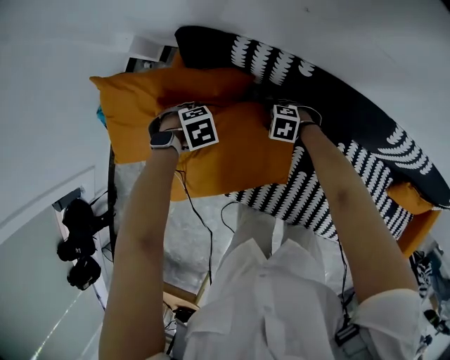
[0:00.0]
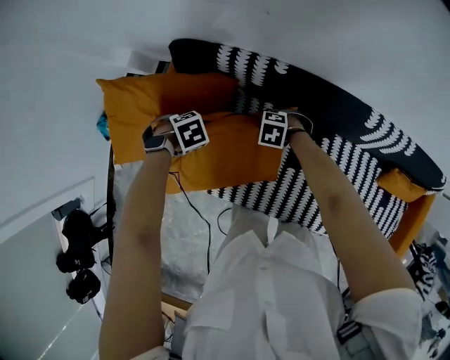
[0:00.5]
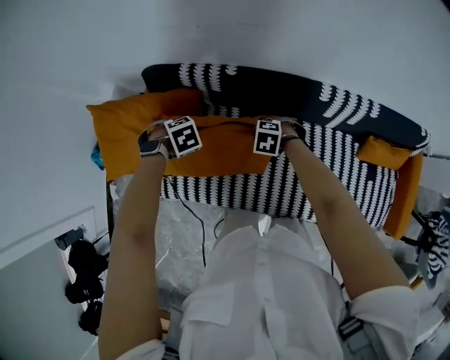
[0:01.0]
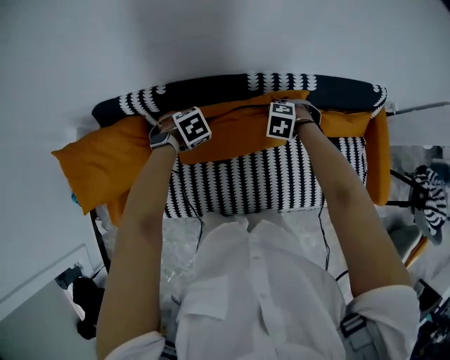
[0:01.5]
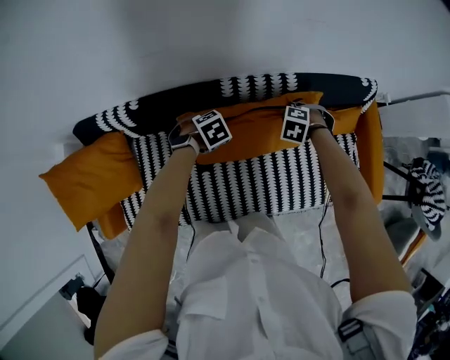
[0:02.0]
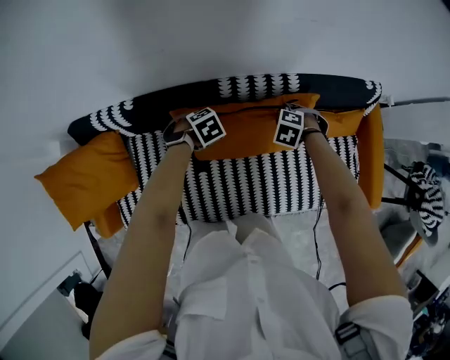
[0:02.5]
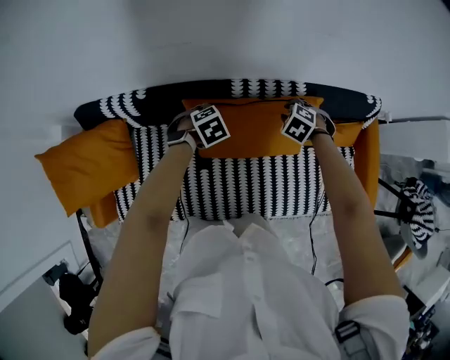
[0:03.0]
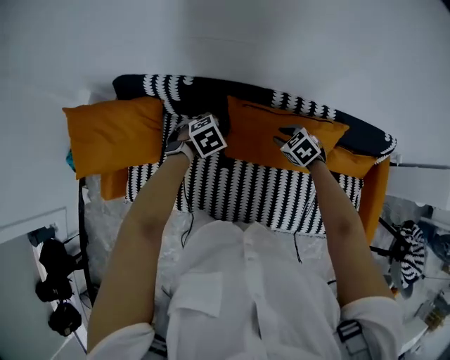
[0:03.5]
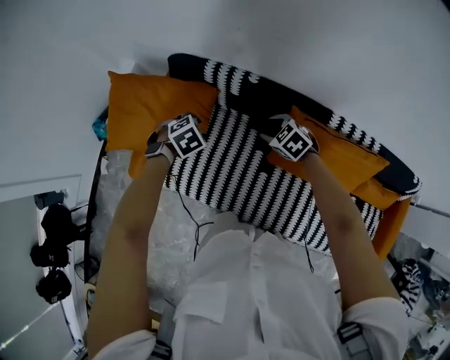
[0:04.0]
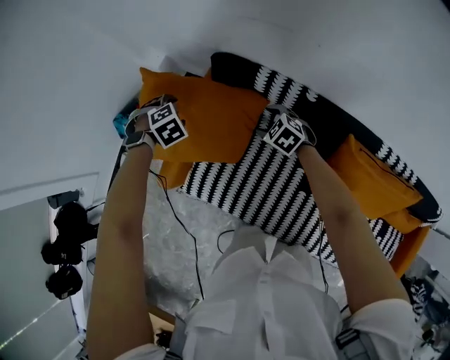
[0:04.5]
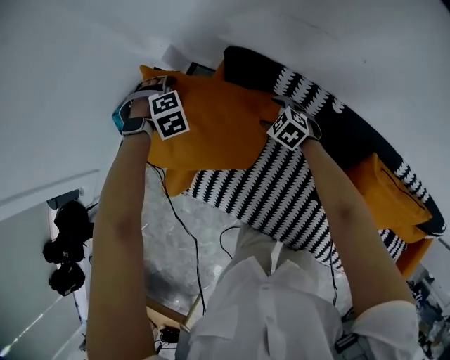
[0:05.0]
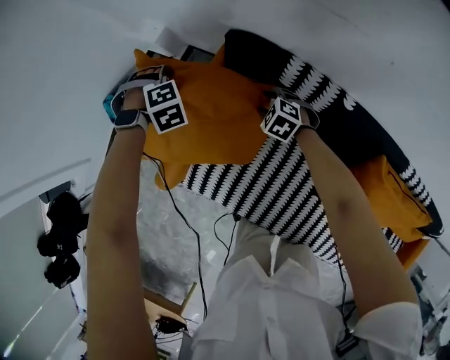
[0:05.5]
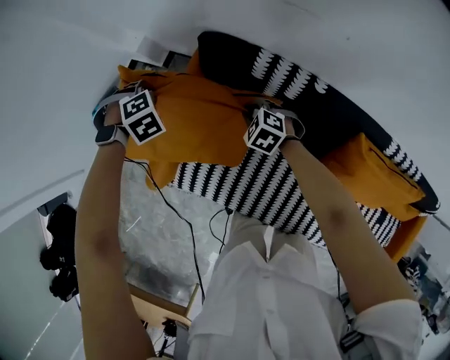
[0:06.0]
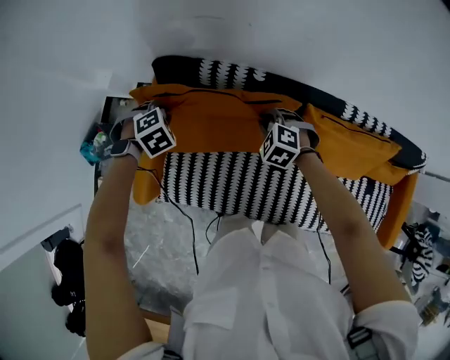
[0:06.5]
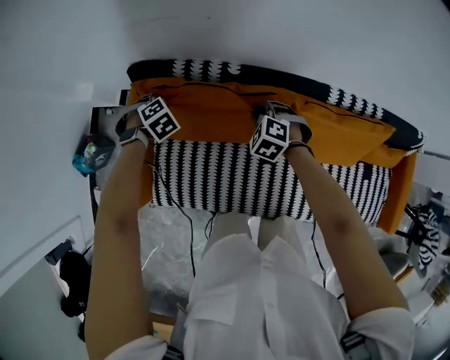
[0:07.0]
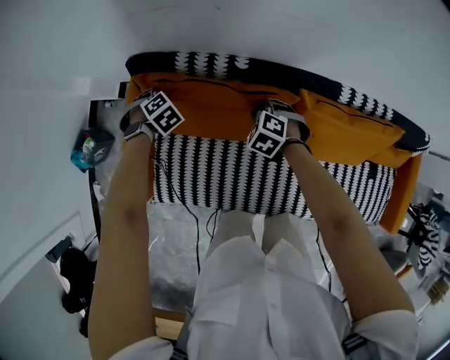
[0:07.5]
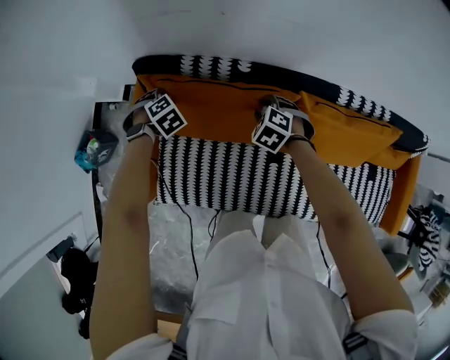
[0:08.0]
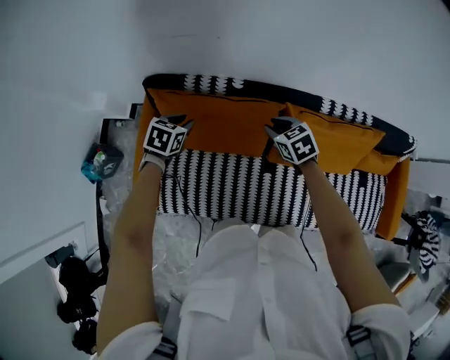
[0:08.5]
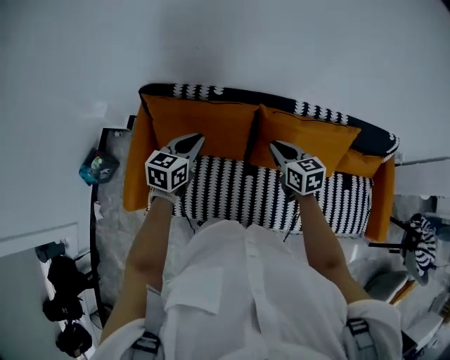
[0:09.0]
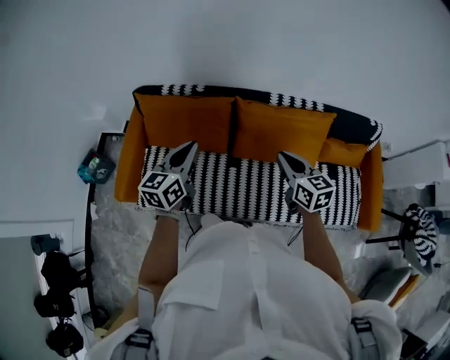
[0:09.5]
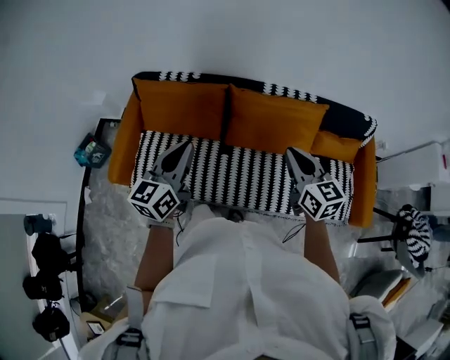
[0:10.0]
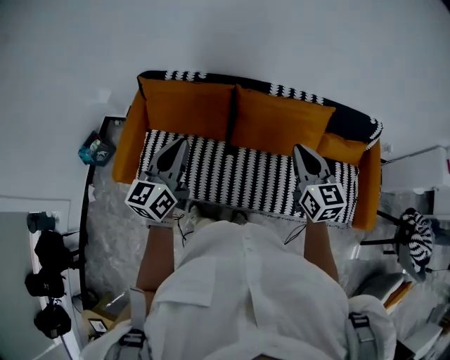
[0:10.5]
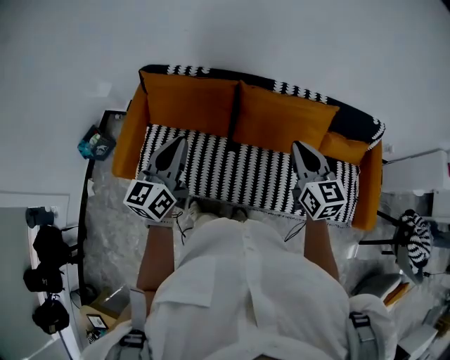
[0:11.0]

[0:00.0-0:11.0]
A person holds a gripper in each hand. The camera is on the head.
0:00.0 to 0:02.0: The pair of grippers is taken roughly 60 cm. The right gripper changes its angle by approximately 40 degrees, and closes. The left gripper turns by some 20 degrees, and closes its fingers.
0:02.0 to 0:03.5: The left gripper shifts by approximately 15 cm, swivels about 20 degrees, and opens. The right gripper ends up about 20 cm from where it was, and turns by some 30 degrees.
0:03.5 to 0:05.5: The pair of grippers is taken about 60 cm. The left gripper rotates some 30 degrees. Meanwhile the right gripper rotates about 40 degrees.
0:05.5 to 0:07.5: The left gripper moves about 25 cm, and closes. Meanwhile the right gripper shifts by some 30 cm, turns by some 30 degrees, and closes up.
0:07.5 to 0:09.0: The left gripper changes place by about 35 cm, and angles its fingers upward, by roughly 50 degrees. The right gripper goes some 20 cm upward, and twists some 50 degrees clockwise, seen from behind.
0:09.0 to 0:11.0: The left gripper heads backward and upward, covering approximately 25 cm, and turns by some 30 degrees; the right gripper heads backward, upward and to the right, covering about 30 cm, and changes its angle by some 20 degrees.

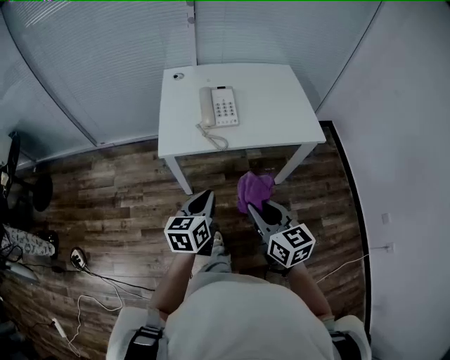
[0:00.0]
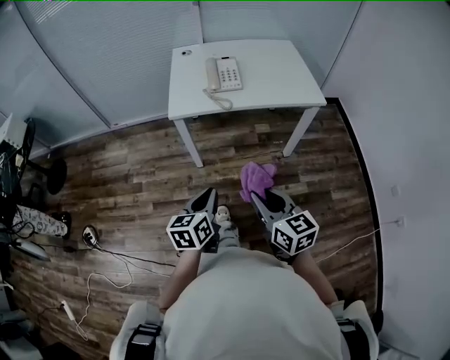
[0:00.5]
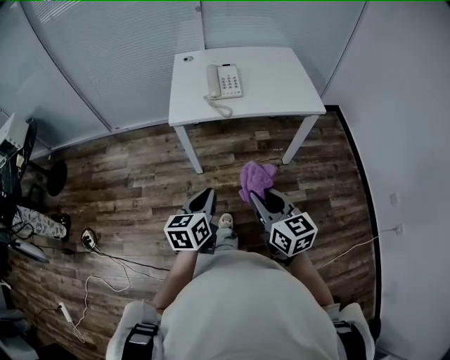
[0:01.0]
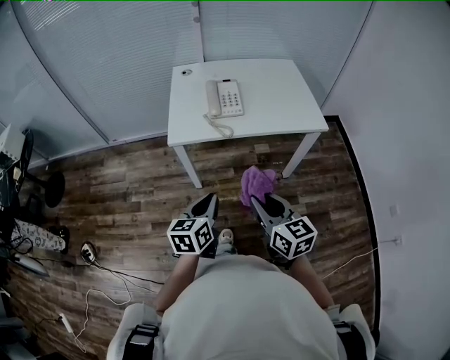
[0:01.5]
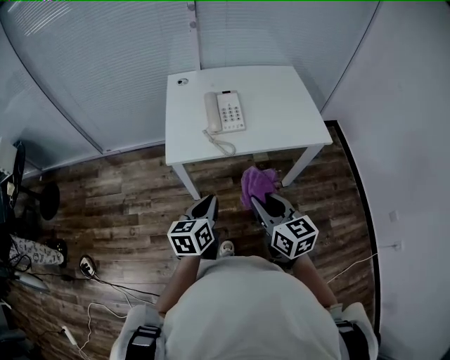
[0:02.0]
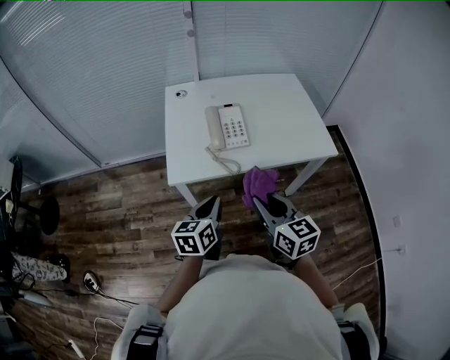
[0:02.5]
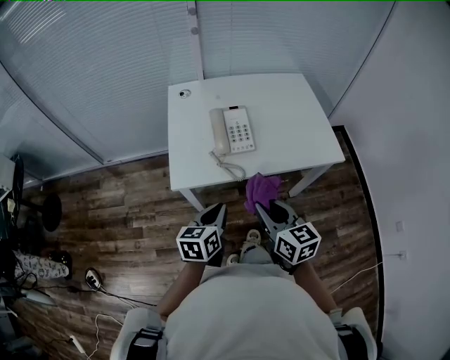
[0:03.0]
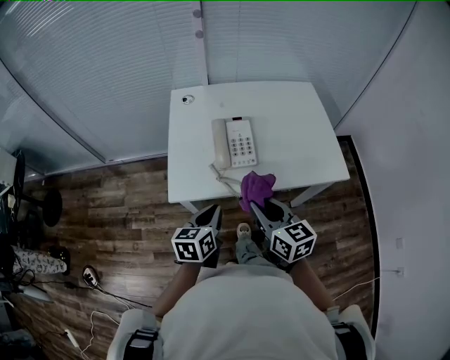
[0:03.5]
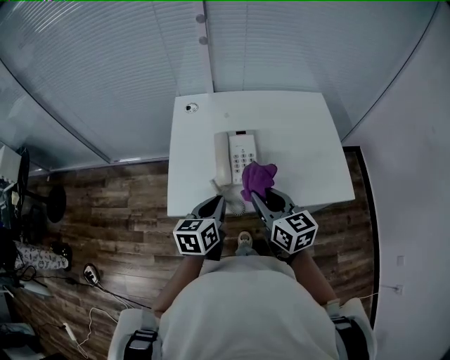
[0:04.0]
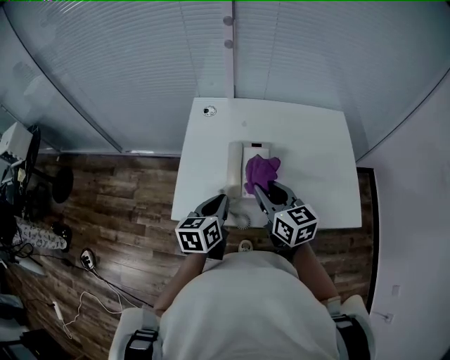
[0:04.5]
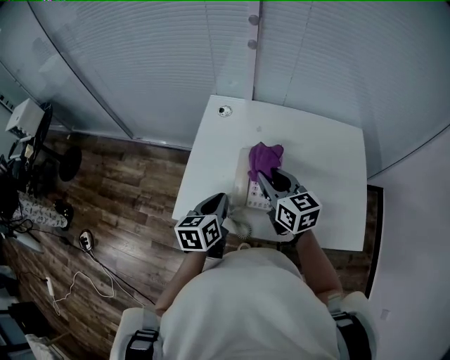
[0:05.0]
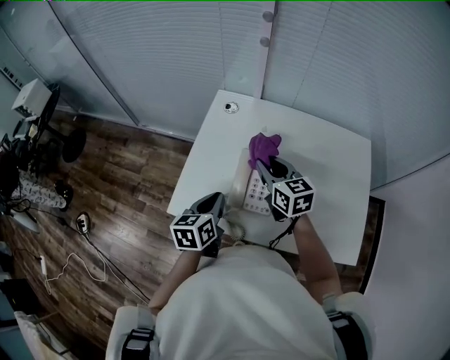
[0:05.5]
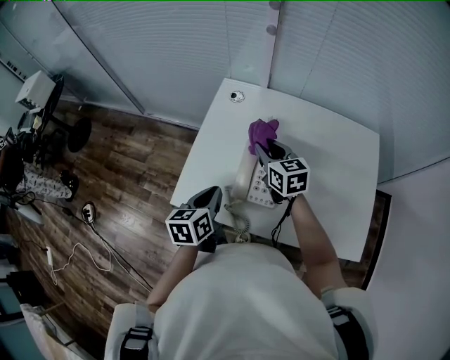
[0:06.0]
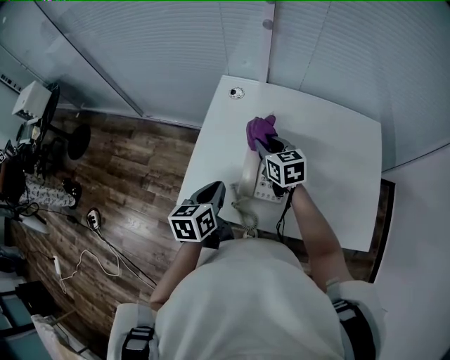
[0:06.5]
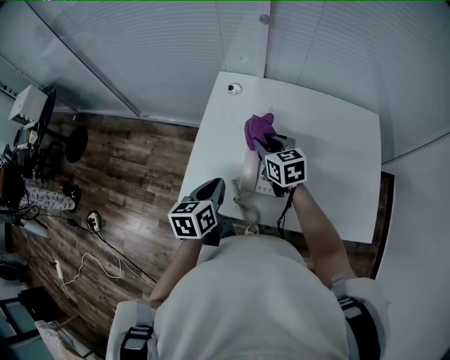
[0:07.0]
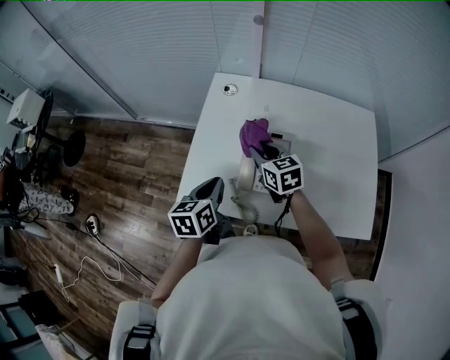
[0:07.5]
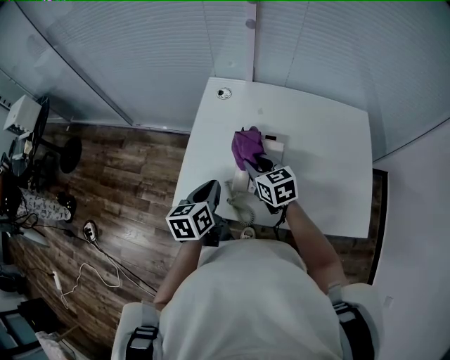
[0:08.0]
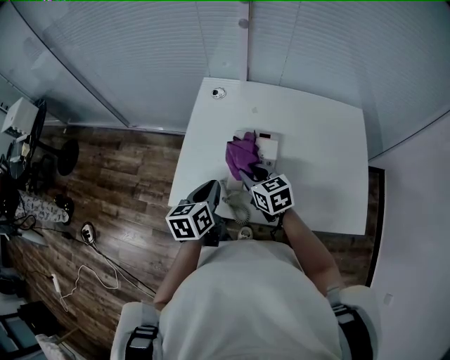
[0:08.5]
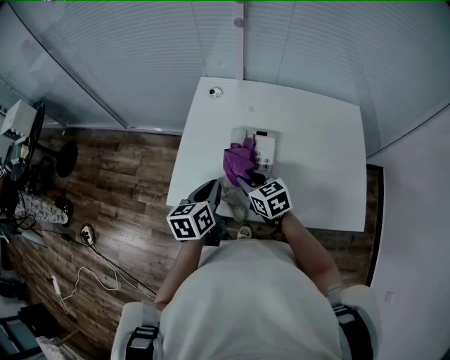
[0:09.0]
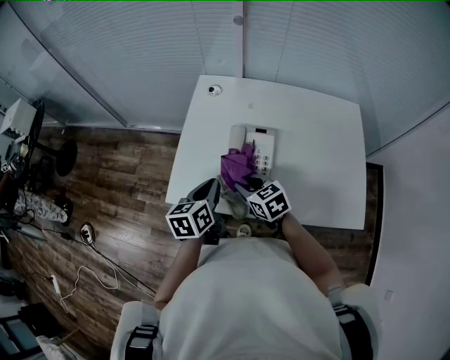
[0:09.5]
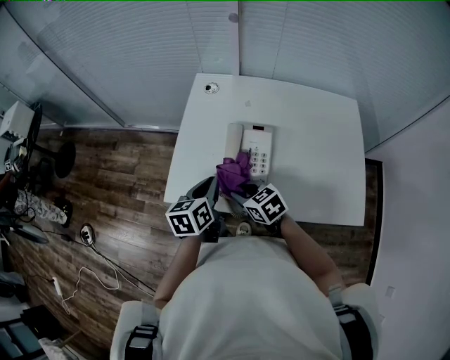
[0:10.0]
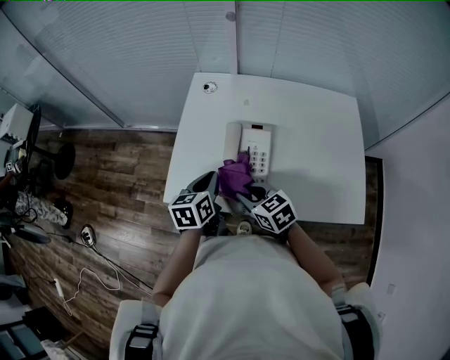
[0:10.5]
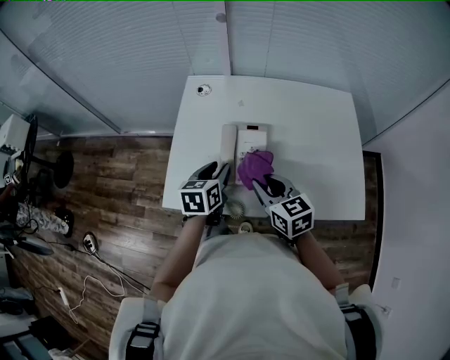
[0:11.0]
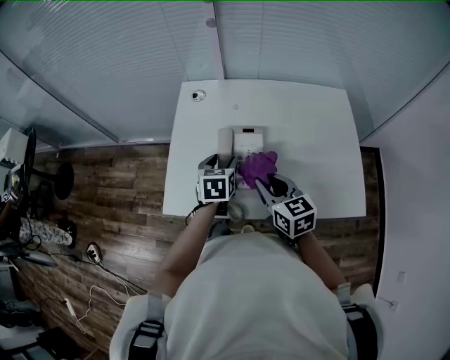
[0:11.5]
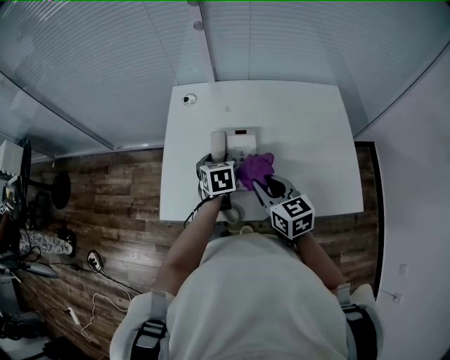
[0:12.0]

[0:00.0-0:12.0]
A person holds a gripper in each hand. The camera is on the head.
0:00.0 to 0:02.0: The left gripper goes backward and returns, roughly 15 cm each way. Meanwhile the right gripper travels backward and back again, about 15 cm each way.
0:02.0 to 0:04.0: Both grippers move forward, some 25 cm.
0:04.0 to 0:06.0: The left gripper moves forward, some 10 cm, and turns by some 20 degrees, while the right gripper heads forward, covering about 25 cm, and swivels roughly 20 degrees.
0:06.0 to 0:08.0: The right gripper moves backward, some 5 cm.
0:08.0 to 0:10.0: The right gripper moves backward and downward, about 15 cm.
0:10.0 to 0:12.0: The left gripper travels forward, to the right and downward by about 15 cm, swivels approximately 30 degrees, and opens up; the right gripper heads to the right and upward, covering about 15 cm, and changes its angle by approximately 30 degrees.

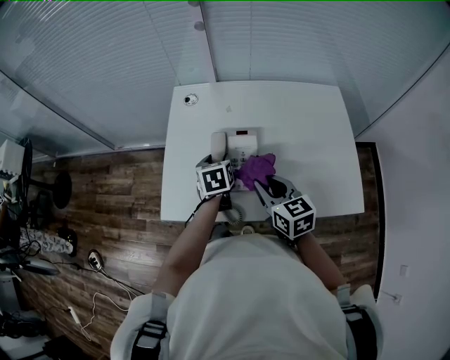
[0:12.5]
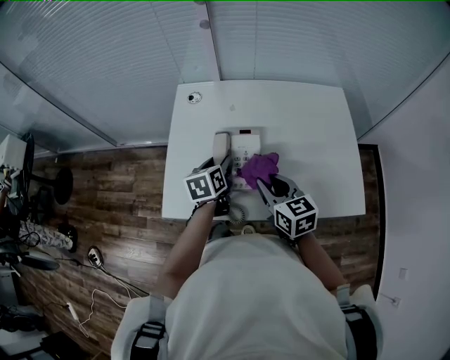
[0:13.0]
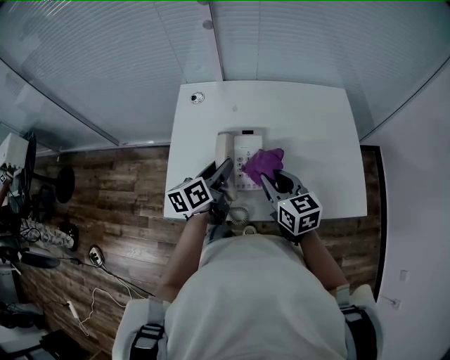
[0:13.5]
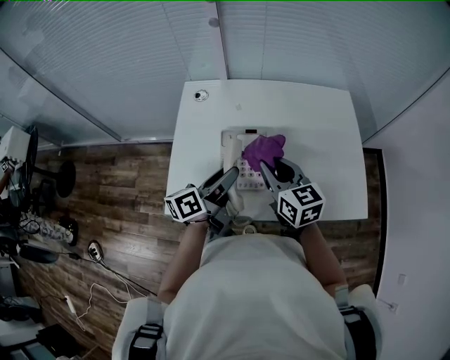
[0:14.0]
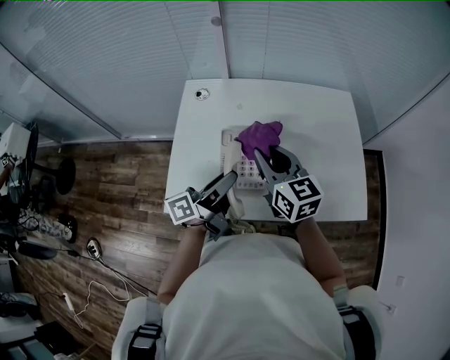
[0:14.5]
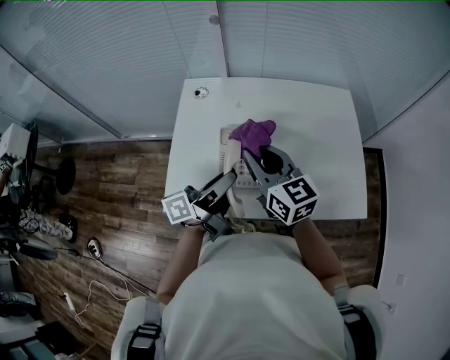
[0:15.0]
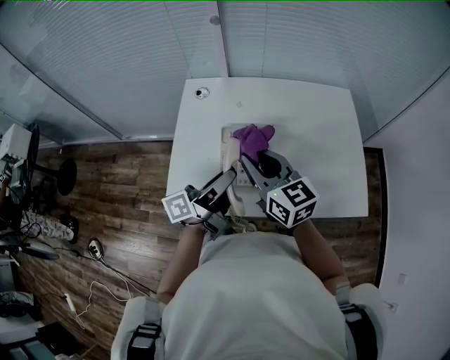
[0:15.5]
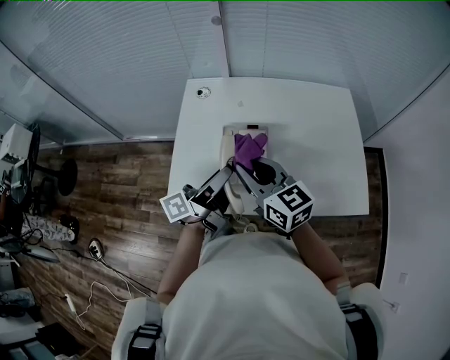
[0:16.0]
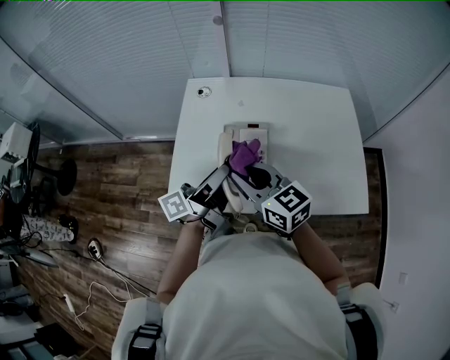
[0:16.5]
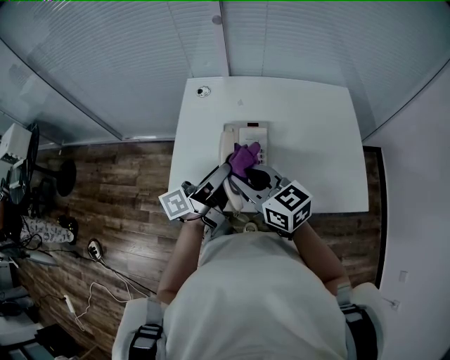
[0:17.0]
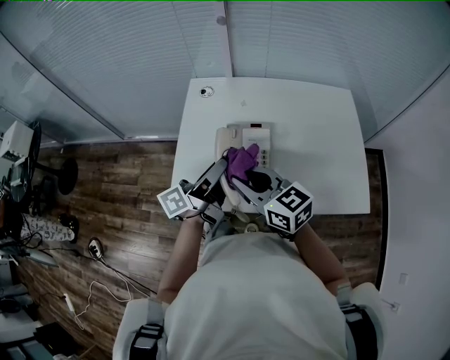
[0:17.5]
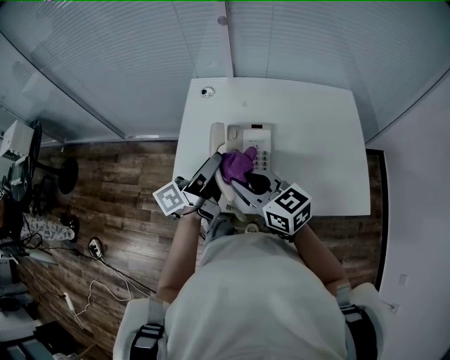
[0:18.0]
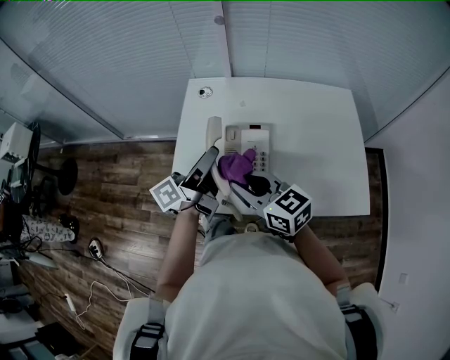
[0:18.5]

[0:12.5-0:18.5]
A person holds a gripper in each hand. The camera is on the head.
0:12.5 to 0:14.5: The left gripper moves upward and backward, some 15 cm, and tilts its fingers some 50 degrees upward, while the right gripper shifts some 10 cm upward and forward.
0:14.5 to 0:16.5: The right gripper shifts some 10 cm backward and to the left.
0:16.5 to 0:18.5: The left gripper moves some 5 cm.
